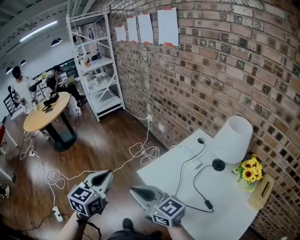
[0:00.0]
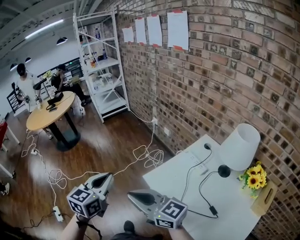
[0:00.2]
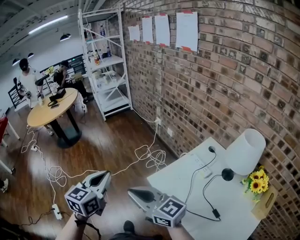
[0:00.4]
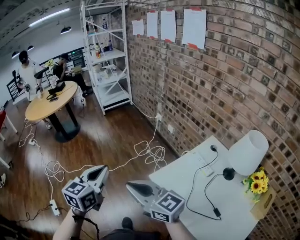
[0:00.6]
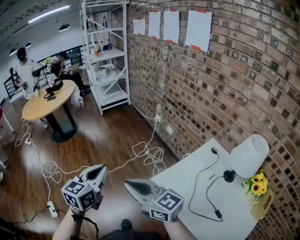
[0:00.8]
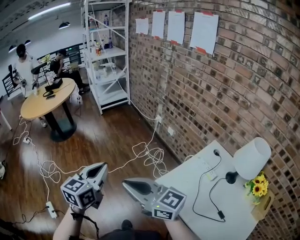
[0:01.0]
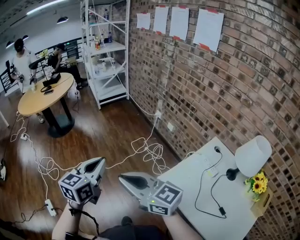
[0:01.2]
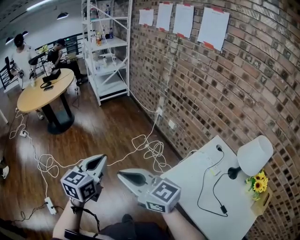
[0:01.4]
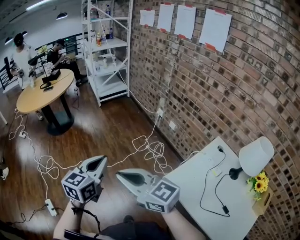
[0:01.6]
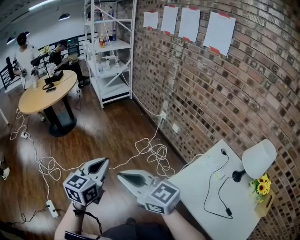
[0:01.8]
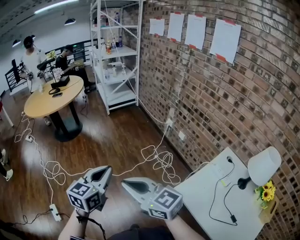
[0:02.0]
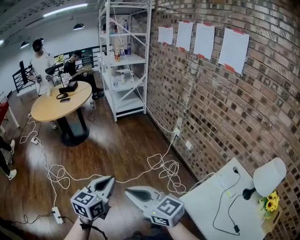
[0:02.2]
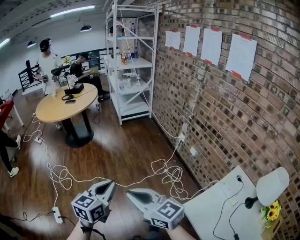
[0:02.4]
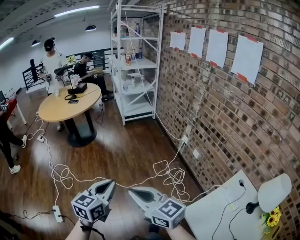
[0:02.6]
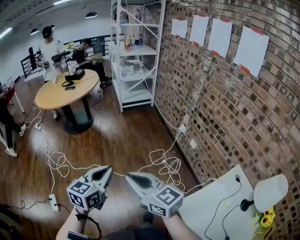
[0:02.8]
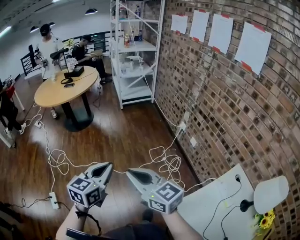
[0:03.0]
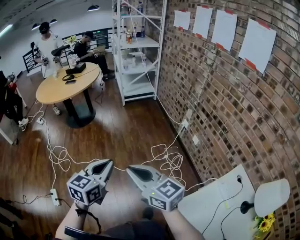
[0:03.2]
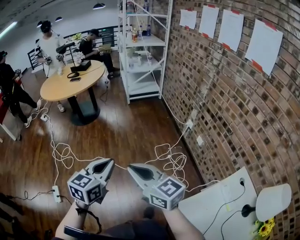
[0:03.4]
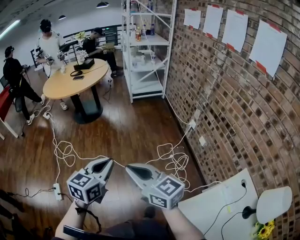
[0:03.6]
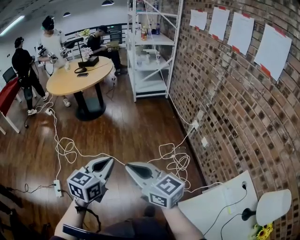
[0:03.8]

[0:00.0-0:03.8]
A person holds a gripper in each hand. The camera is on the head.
0:00.0 to 0:01.2: The right gripper shifts roughly 20 cm to the left and forward. Meanwhile the left gripper heads forward and to the left, covering approximately 20 cm.
0:01.2 to 0:02.6: The right gripper shifts about 15 cm forward and to the left. Meanwhile the left gripper heads to the left and forward, covering roughly 10 cm.
0:02.6 to 0:03.8: The right gripper shifts approximately 5 cm forward.

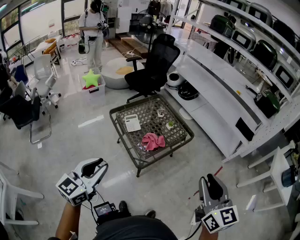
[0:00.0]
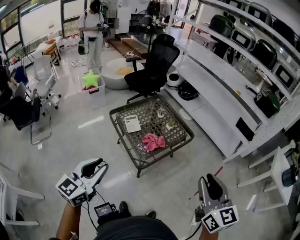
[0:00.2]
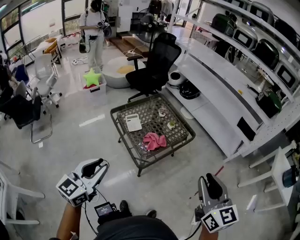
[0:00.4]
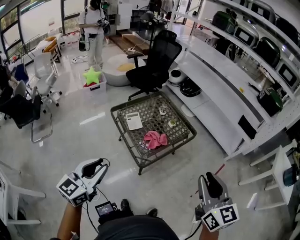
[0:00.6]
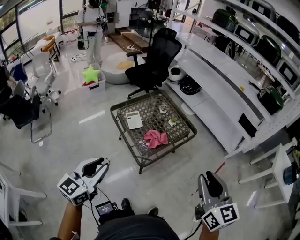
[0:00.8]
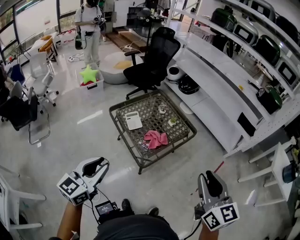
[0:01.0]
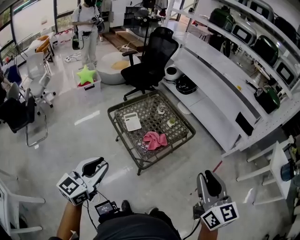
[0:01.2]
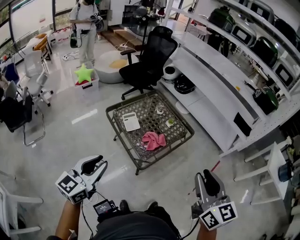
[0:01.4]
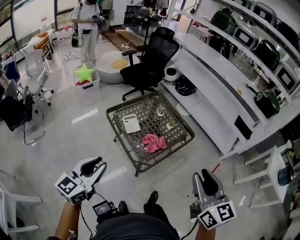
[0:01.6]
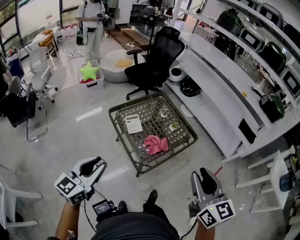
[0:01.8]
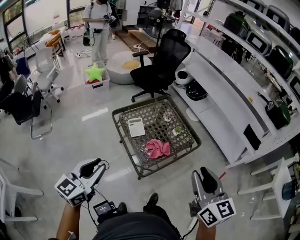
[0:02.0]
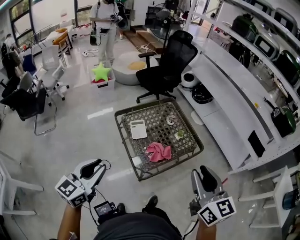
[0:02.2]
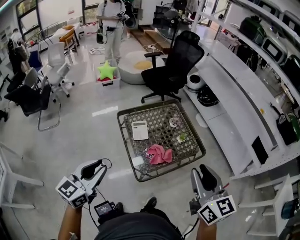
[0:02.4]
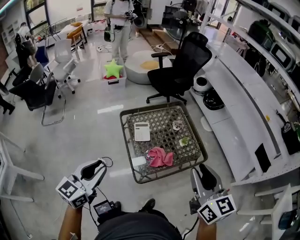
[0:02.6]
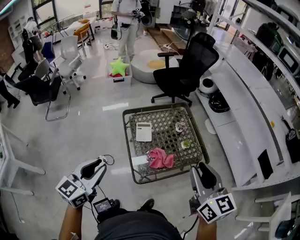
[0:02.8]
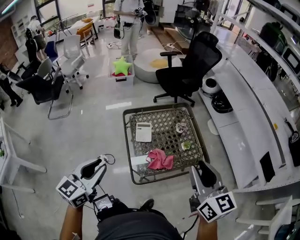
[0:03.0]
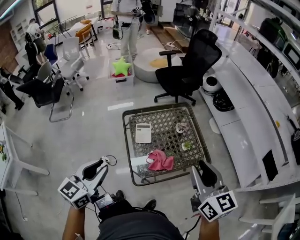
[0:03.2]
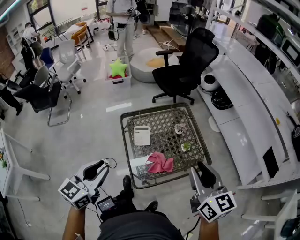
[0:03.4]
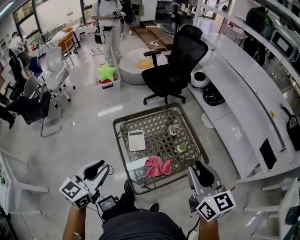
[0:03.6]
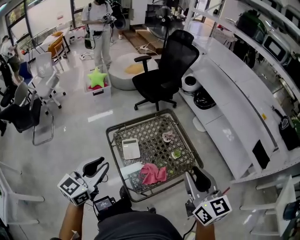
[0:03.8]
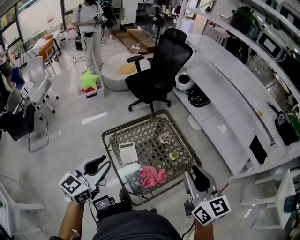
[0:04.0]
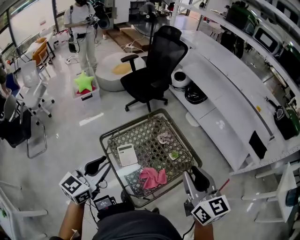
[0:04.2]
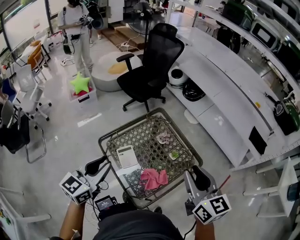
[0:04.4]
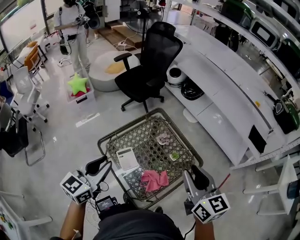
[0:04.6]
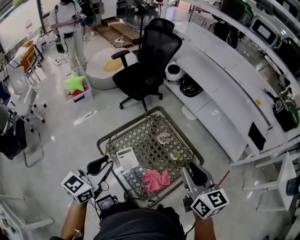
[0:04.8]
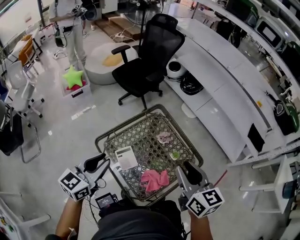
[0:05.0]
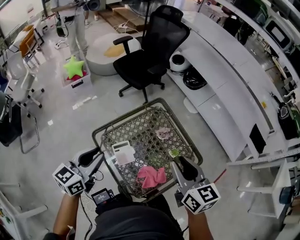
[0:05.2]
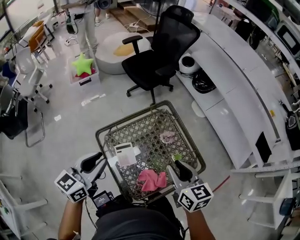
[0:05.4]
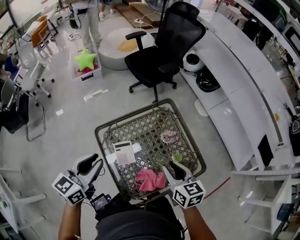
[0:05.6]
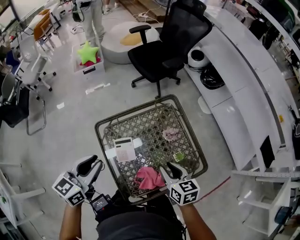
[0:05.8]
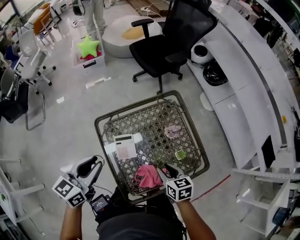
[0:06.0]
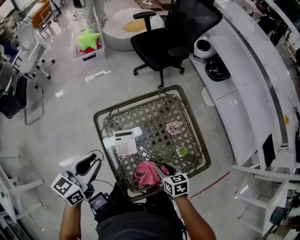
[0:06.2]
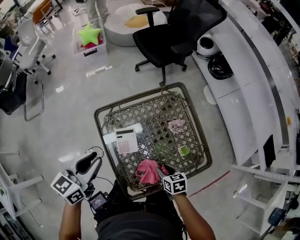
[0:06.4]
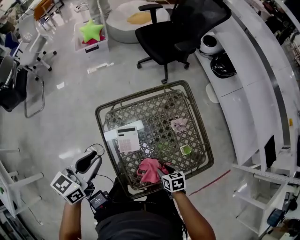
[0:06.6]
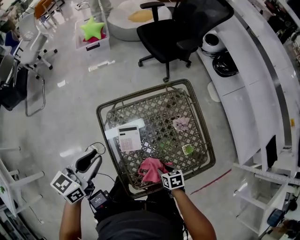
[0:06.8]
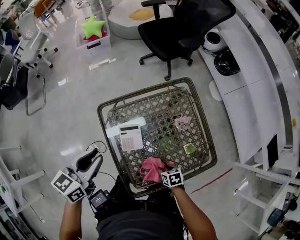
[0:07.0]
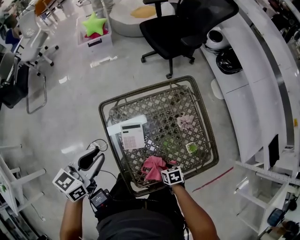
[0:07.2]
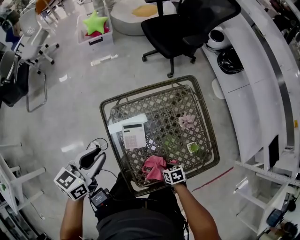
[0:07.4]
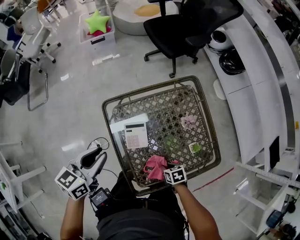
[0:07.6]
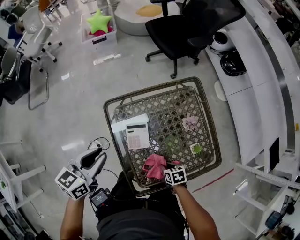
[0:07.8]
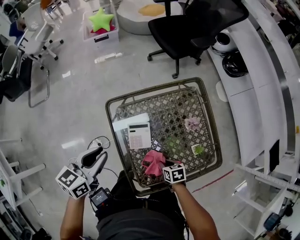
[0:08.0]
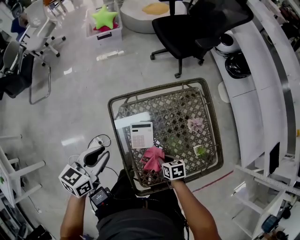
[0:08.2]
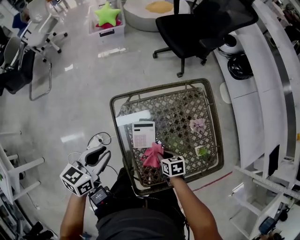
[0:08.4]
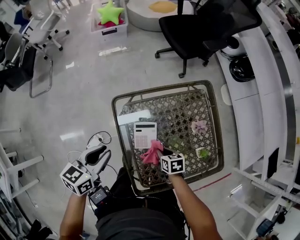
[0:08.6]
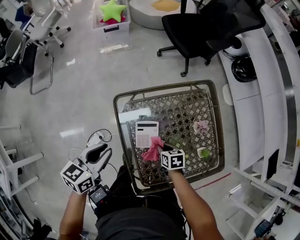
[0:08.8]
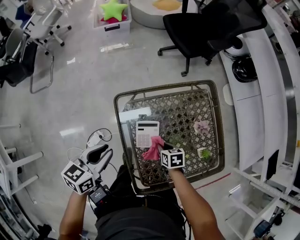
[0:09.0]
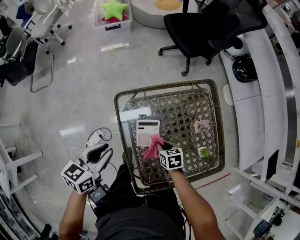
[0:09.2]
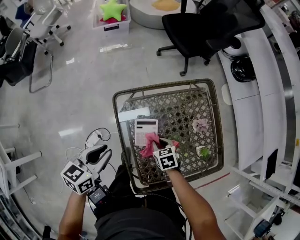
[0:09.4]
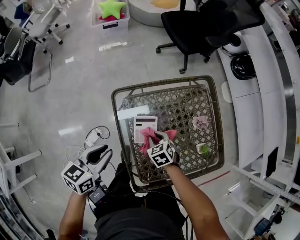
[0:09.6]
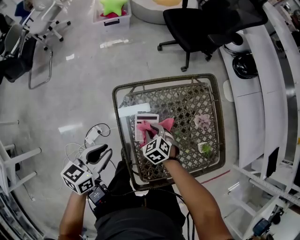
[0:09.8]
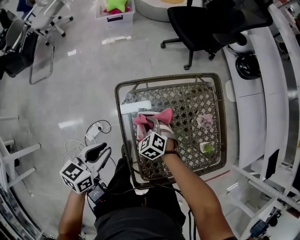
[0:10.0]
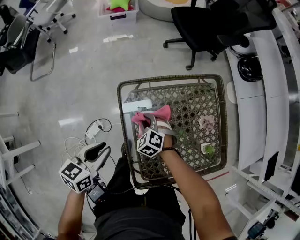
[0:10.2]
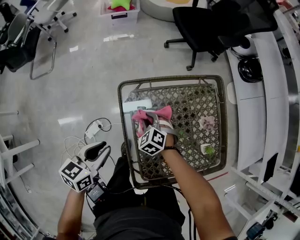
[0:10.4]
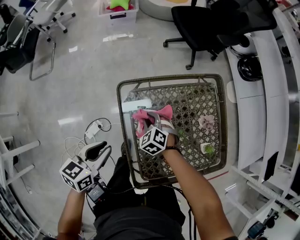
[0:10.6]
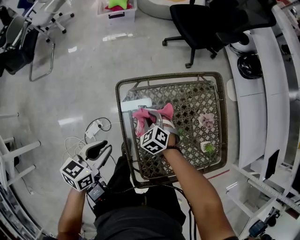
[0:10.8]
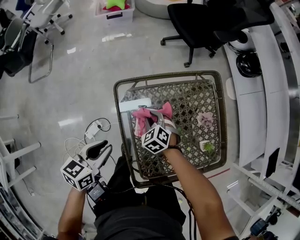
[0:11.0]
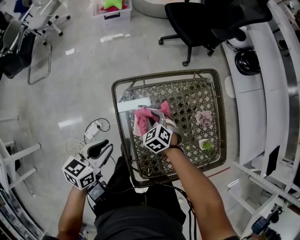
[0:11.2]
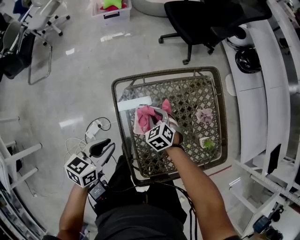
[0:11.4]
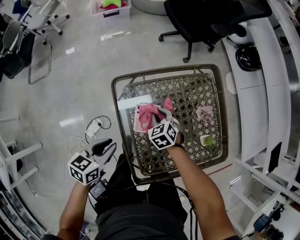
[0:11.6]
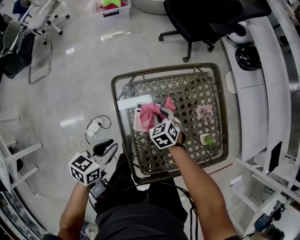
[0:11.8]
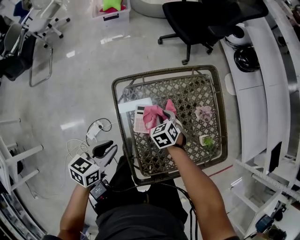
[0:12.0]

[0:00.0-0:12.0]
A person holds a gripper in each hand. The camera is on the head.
0:00.0 to 0:01.6: The right gripper is displaced to the left and forward by approximately 10 cm. Meanwhile the left gripper travels forward and to the left by some 10 cm.
0:01.6 to 0:03.0: The left gripper goes about 10 cm forward and to the right, and rotates approximately 20 degrees. Meanwhile the right gripper goes about 25 cm forward, and swivels some 30 degrees.
0:03.0 to 0:04.4: The left gripper heads forward, covering approximately 25 cm, and changes its angle by approximately 20 degrees. The right gripper shifts approximately 10 cm forward, and turns by roughly 20 degrees.
0:04.4 to 0:06.0: The right gripper heads downward, covering some 30 cm, and points its fingers some 30 degrees further downward. The left gripper goes approximately 10 cm downward, and turns by roughly 20 degrees.
0:06.0 to 0:07.6: The right gripper heads downward, covering about 20 cm, and changes its angle by some 30 degrees; the left gripper is displaced downward by some 5 cm.
0:07.6 to 0:09.0: The right gripper shifts roughly 15 cm forward and to the left; the left gripper shifts approximately 5 cm downward.
0:09.0 to 0:10.4: The right gripper moves to the left and forward, approximately 15 cm, and rotates around the line of its fingers by about 60 degrees, counterclockwise from behind.
0:10.4 to 0:12.0: The left gripper ends up some 5 cm from where it was; the right gripper is displaced to the right by some 10 cm, and changes its angle by roughly 30 degrees.

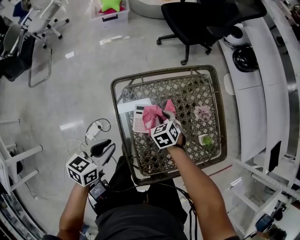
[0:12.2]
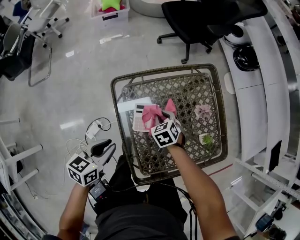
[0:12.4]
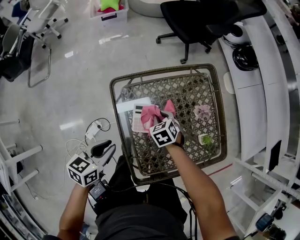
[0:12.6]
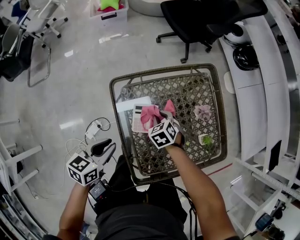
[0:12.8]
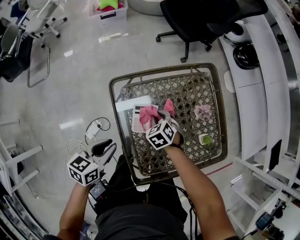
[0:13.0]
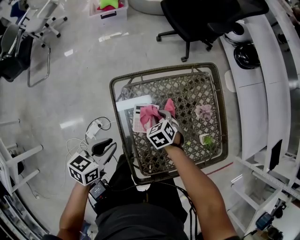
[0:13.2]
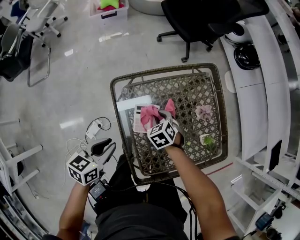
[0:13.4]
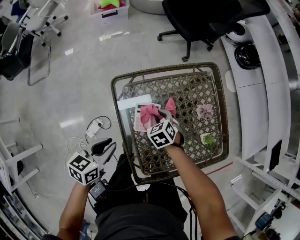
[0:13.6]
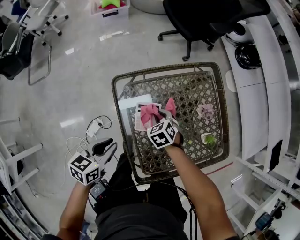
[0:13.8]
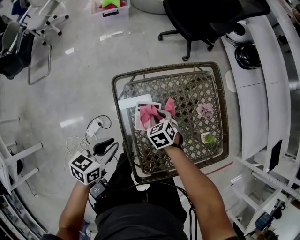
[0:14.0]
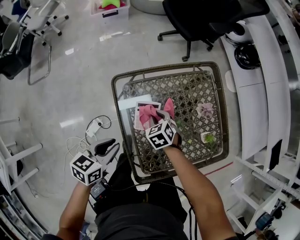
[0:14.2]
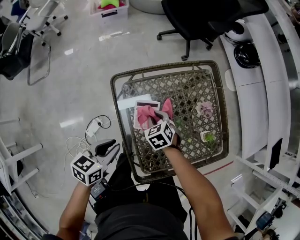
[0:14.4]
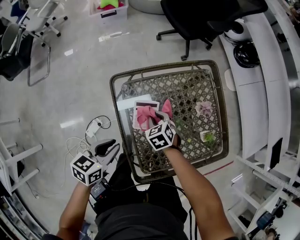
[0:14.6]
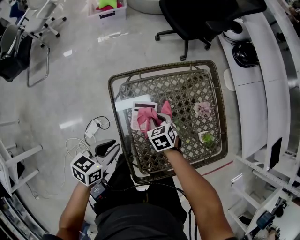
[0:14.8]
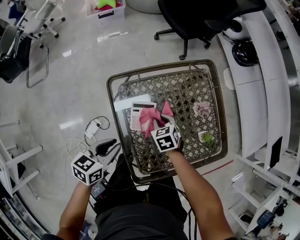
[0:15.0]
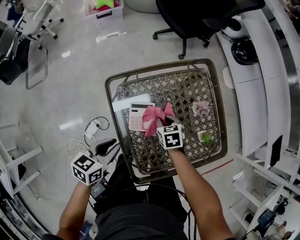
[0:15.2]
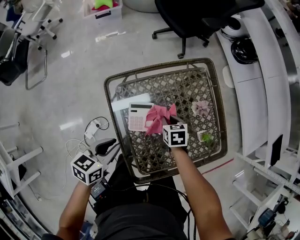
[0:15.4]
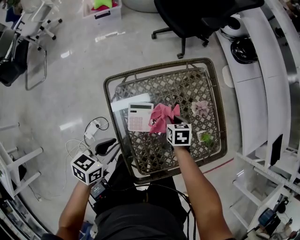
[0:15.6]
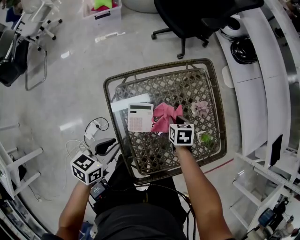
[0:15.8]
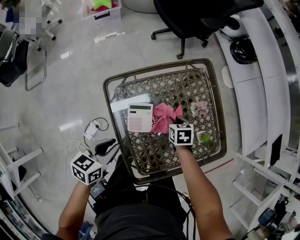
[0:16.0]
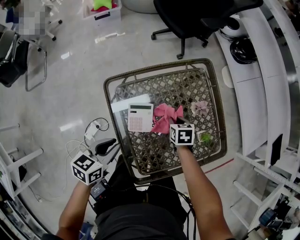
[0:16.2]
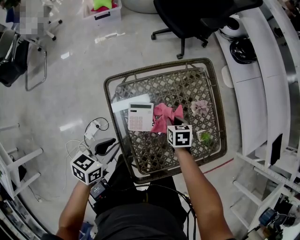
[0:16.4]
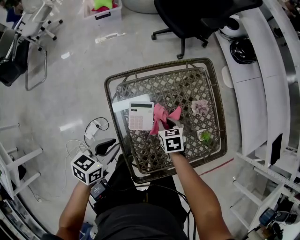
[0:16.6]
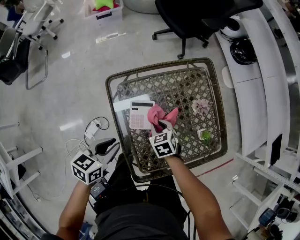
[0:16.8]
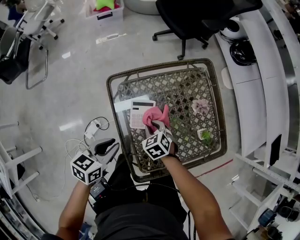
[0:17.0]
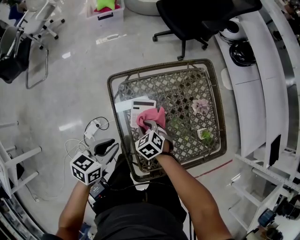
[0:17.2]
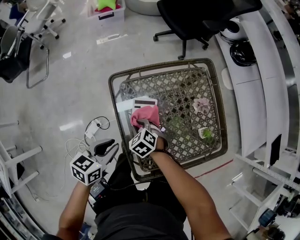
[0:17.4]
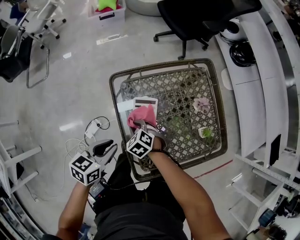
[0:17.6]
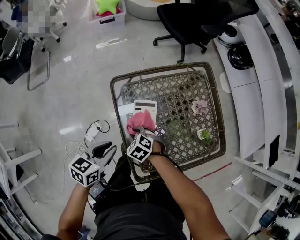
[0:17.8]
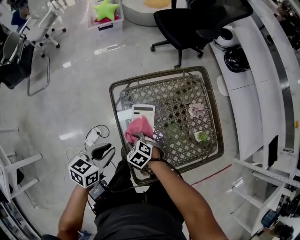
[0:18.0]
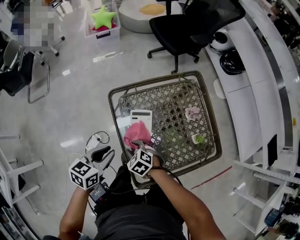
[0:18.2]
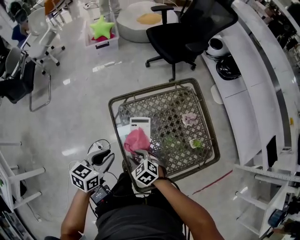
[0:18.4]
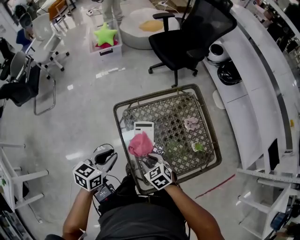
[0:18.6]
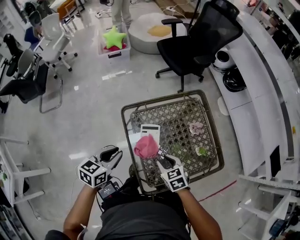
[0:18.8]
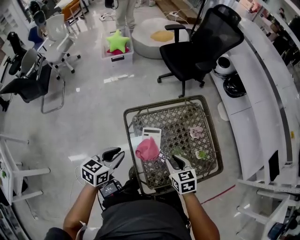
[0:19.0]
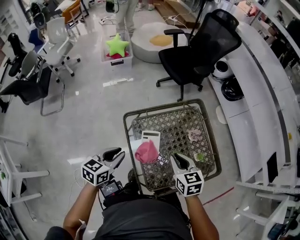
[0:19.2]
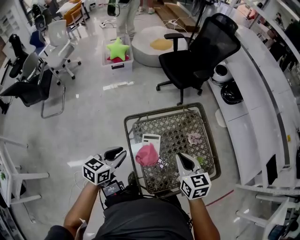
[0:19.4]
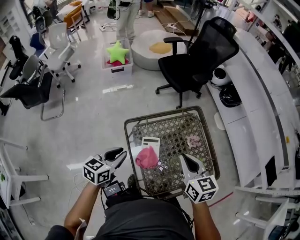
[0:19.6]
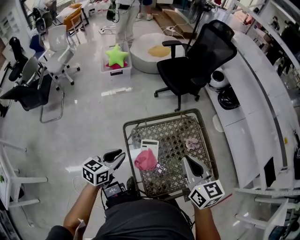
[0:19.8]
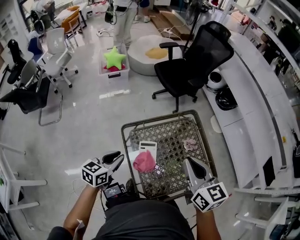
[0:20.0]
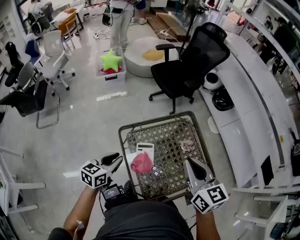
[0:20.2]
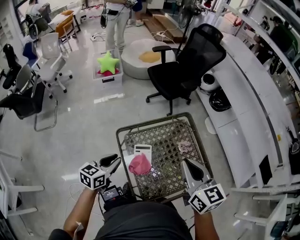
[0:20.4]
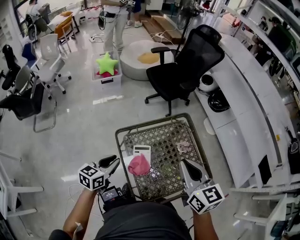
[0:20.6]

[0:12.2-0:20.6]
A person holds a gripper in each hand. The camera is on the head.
0:12.2 to 0:15.0: The grippers stay close to where they were, moving slightly.
0:15.0 to 0:16.4: The right gripper is displaced to the right by roughly 10 cm, and rotates roughly 20 degrees.
0:16.4 to 0:17.8: The right gripper shifts some 25 cm to the left and backward, and twists some 50 degrees counterclockwise, seen from behind. The left gripper changes place by approximately 5 cm.
0:17.8 to 0:19.2: The right gripper is displaced upward and to the right by approximately 30 cm, and turns by some 50 degrees. Meanwhile the left gripper shifts some 10 cm upward and forward.
0:19.2 to 0:20.6: The right gripper goes roughly 20 cm upward, and rotates approximately 20 degrees.
